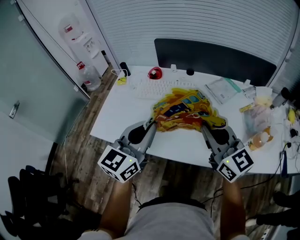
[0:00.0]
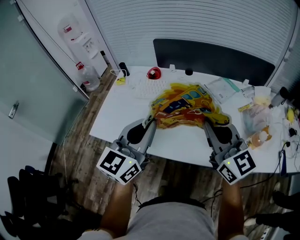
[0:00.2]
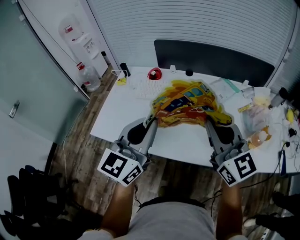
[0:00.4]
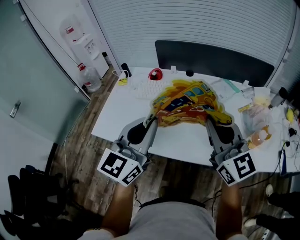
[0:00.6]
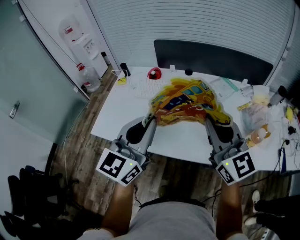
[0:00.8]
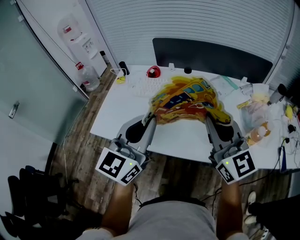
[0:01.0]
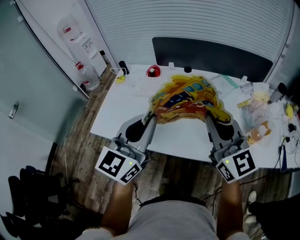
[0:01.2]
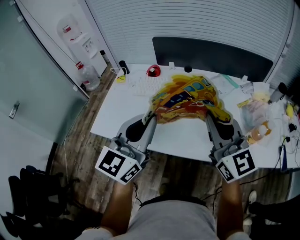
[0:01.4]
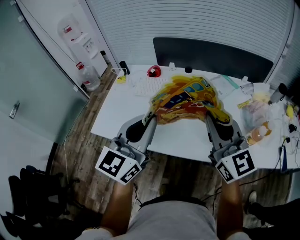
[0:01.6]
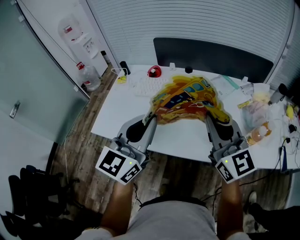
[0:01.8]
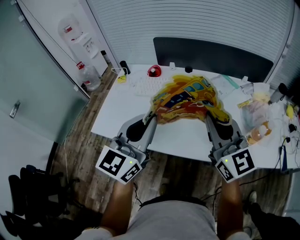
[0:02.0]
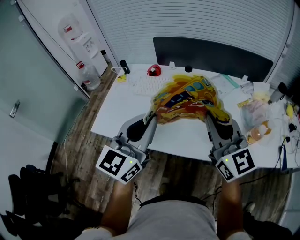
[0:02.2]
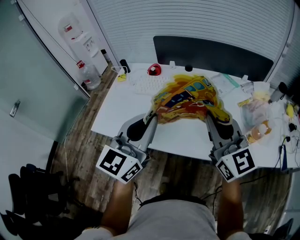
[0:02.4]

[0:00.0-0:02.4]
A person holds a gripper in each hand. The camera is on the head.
0:00.0 to 0:01.2: The left gripper ends up approximately 5 cm from where it was. Meanwhile the right gripper is displaced upward by about 5 cm.
0:01.2 to 0:02.4: Neither gripper changes place.

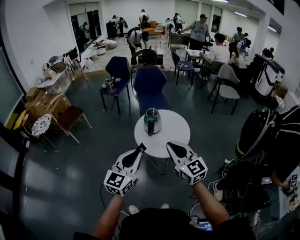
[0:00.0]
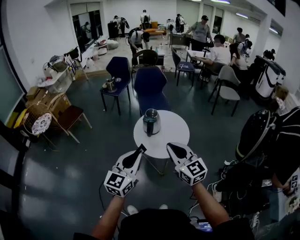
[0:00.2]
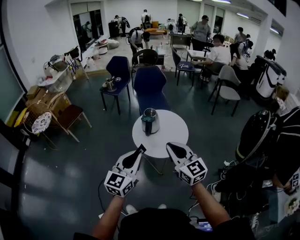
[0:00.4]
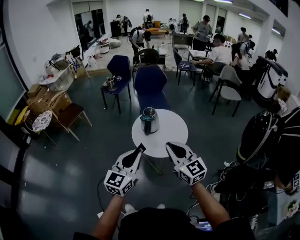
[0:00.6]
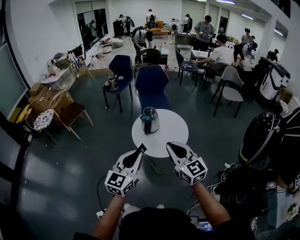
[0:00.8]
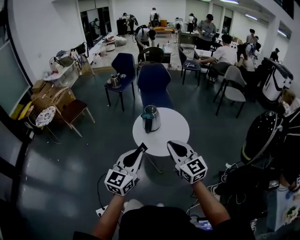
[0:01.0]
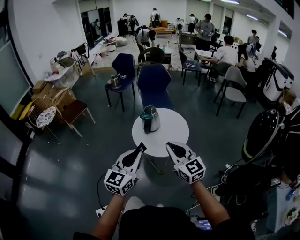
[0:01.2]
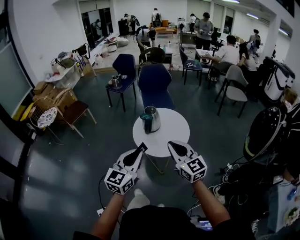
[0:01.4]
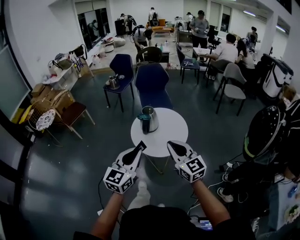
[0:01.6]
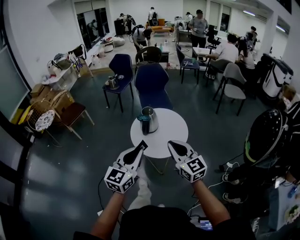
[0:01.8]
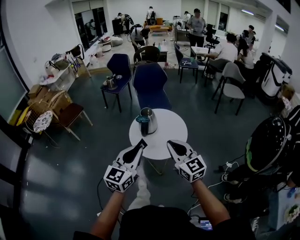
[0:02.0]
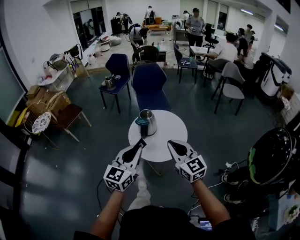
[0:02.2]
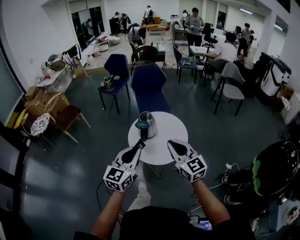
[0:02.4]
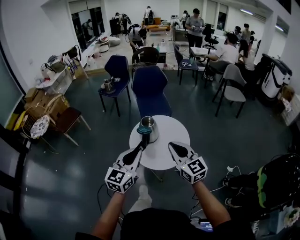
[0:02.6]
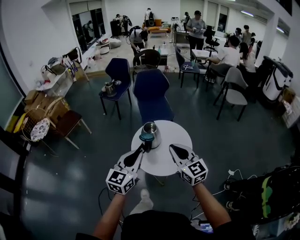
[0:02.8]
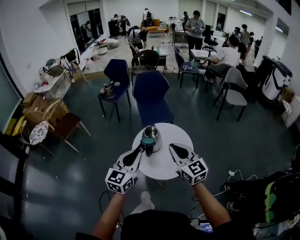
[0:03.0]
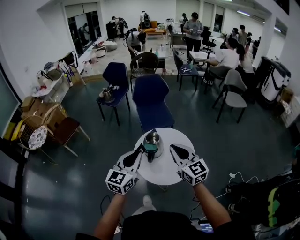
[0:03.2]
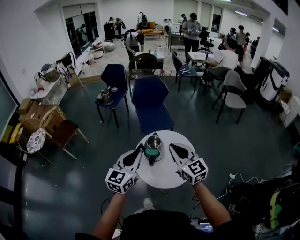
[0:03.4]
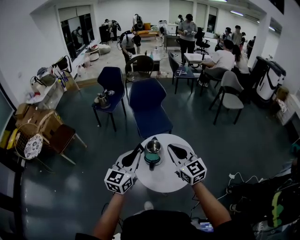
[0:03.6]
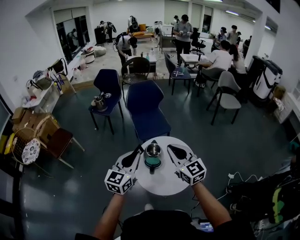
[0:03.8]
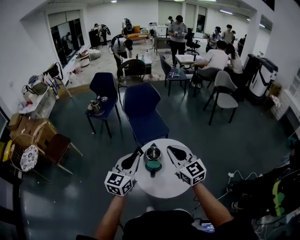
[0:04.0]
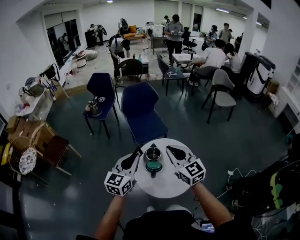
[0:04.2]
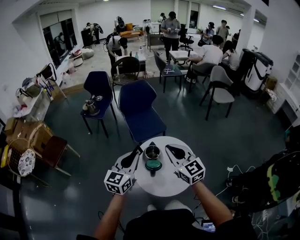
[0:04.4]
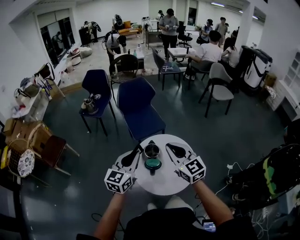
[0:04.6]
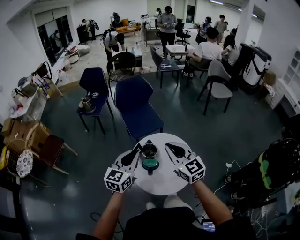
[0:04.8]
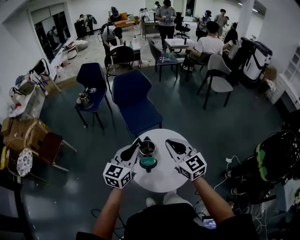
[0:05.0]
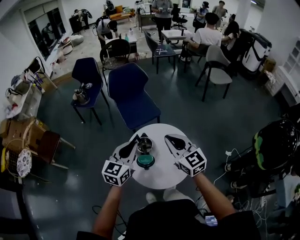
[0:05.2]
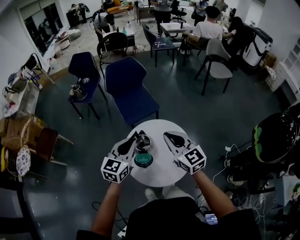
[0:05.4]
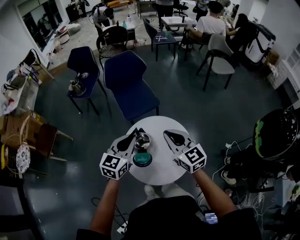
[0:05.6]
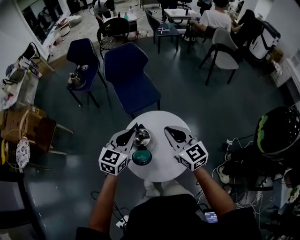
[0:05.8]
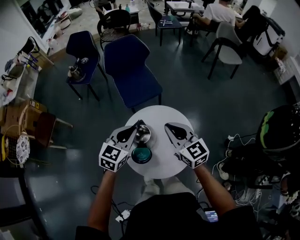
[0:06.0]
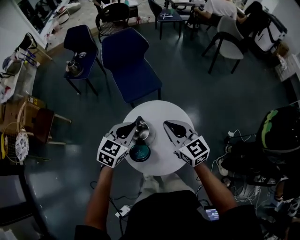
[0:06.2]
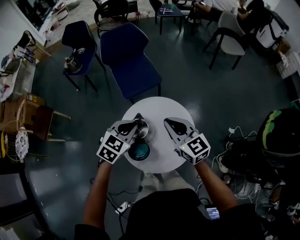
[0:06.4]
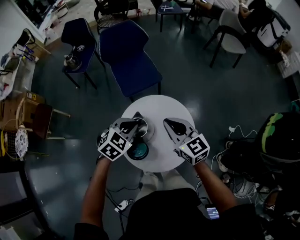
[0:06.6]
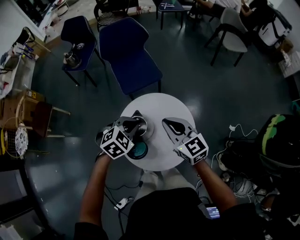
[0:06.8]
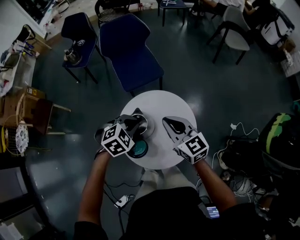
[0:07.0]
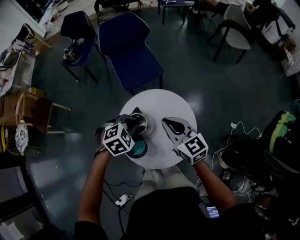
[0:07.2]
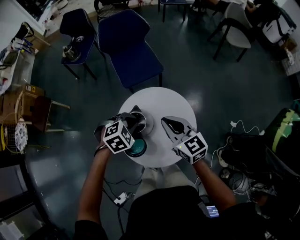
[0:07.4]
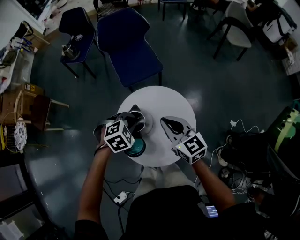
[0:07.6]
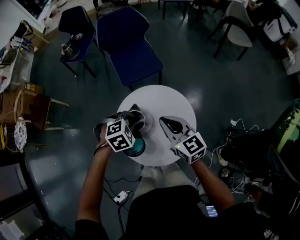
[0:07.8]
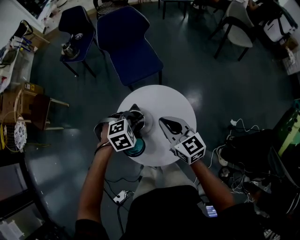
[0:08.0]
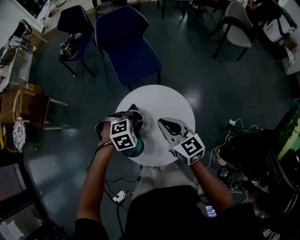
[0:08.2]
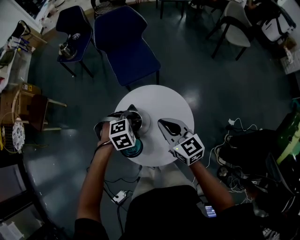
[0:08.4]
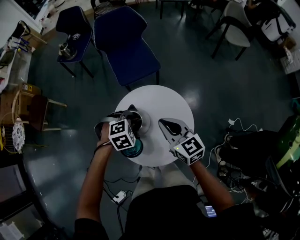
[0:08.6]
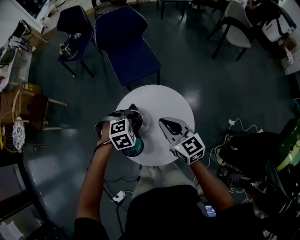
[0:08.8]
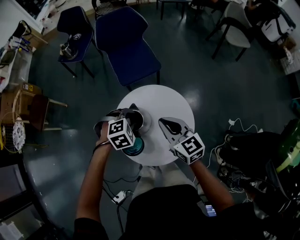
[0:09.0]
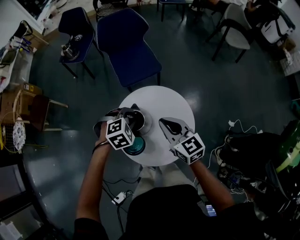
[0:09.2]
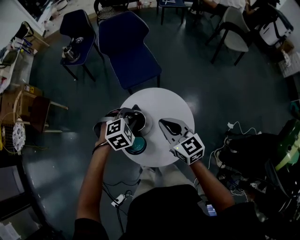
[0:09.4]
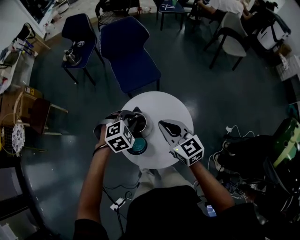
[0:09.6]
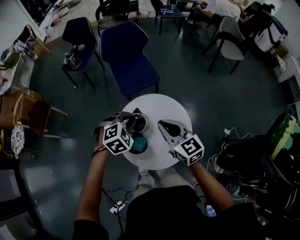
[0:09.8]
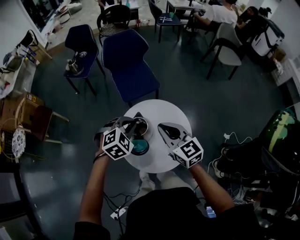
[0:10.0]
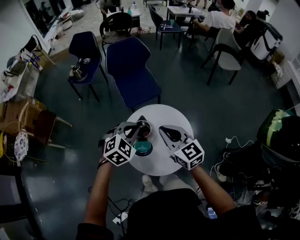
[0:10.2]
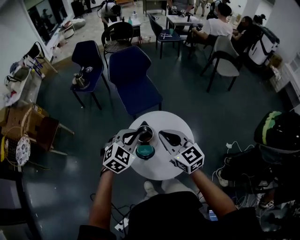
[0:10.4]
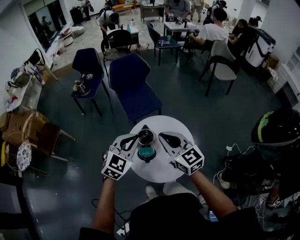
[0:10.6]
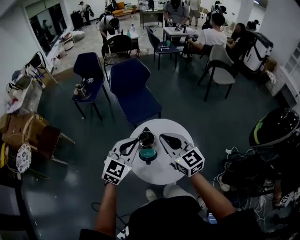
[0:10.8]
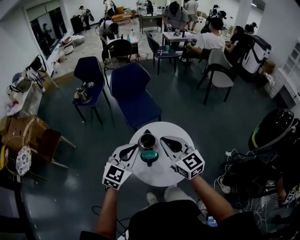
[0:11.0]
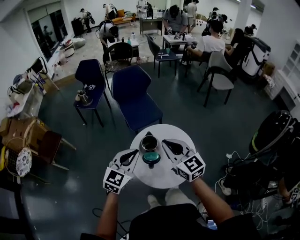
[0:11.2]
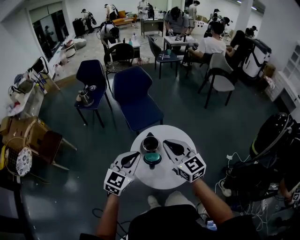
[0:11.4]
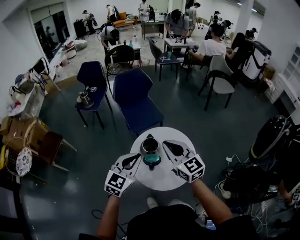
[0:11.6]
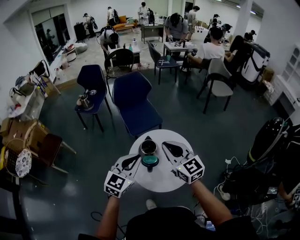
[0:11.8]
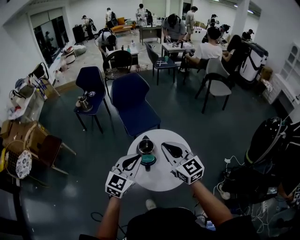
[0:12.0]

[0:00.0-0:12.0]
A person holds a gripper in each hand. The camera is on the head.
0:00.0 to 0:01.6: The grippers both shift to the right by some 10 cm.
0:01.6 to 0:03.0: The two grippers go some 25 cm forward.
0:03.0 to 0:04.4: Both grippers travel together forward and to the left, roughly 20 cm.
0:04.4 to 0:06.0: Both grippers travel together forward, downward and to the right, some 20 cm. The left gripper swivels about 20 degrees.
0:06.0 to 0:07.6: The right gripper moves downward, approximately 10 cm. The left gripper travels downward by roughly 15 cm, and tilts its fingers some 40 degrees downward.
0:07.6 to 0:09.0: There are only small adjustments of the grippers.
0:09.0 to 0:10.4: The right gripper goes approximately 20 cm upward, backward and to the left, while the left gripper is displaced upward and backward by some 20 cm, and angles its fingers upward, by roughly 30 degrees.
0:10.4 to 0:12.0: Both grippers move backward and upward, roughly 15 cm. The left gripper swivels about 30 degrees.

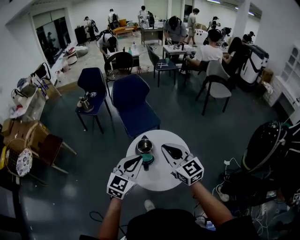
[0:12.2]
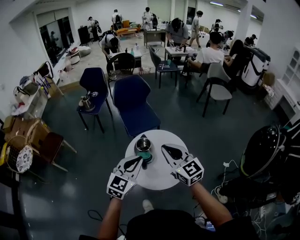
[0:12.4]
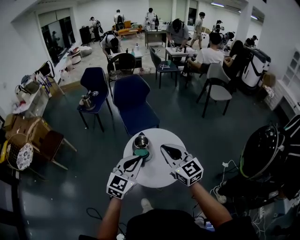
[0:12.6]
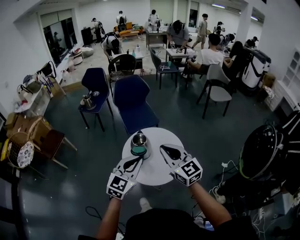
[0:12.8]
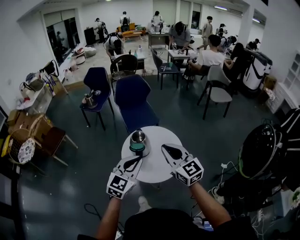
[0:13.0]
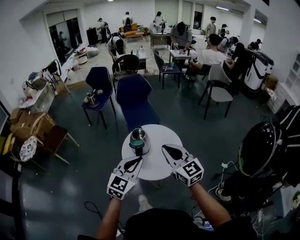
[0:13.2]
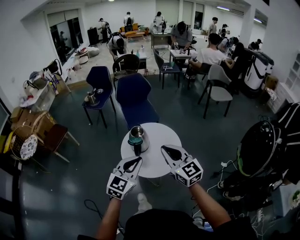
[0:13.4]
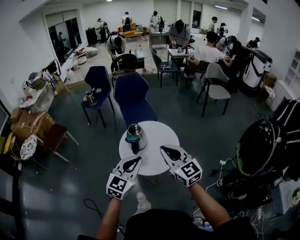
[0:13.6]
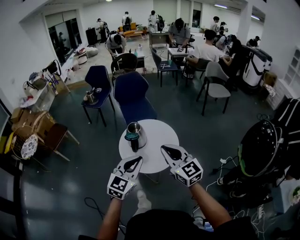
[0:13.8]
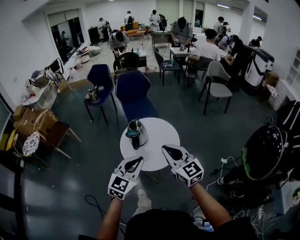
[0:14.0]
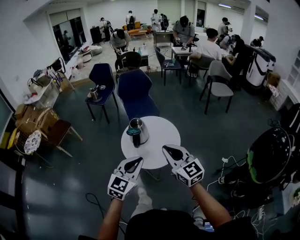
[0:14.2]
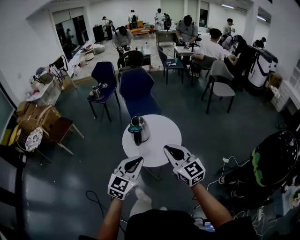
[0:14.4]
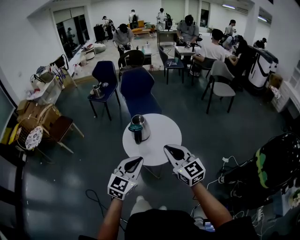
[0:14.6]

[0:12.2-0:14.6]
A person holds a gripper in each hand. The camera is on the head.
0:12.2 to 0:13.4: The two grippers go approximately 20 cm backward and to the right.
0:13.4 to 0:14.6: Both grippers move backward, roughly 10 cm.

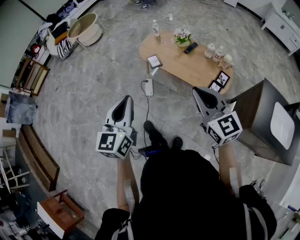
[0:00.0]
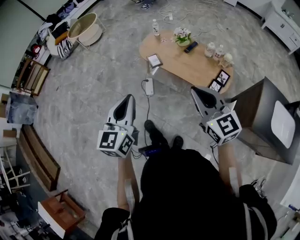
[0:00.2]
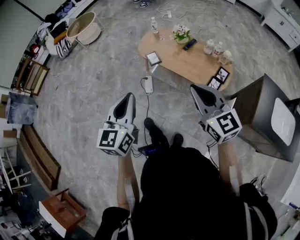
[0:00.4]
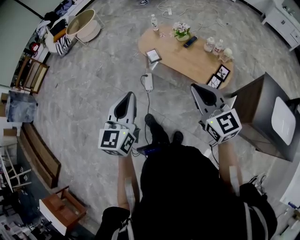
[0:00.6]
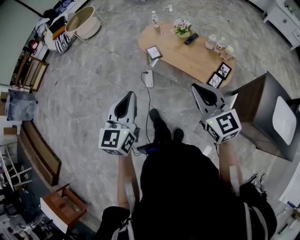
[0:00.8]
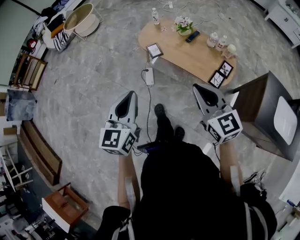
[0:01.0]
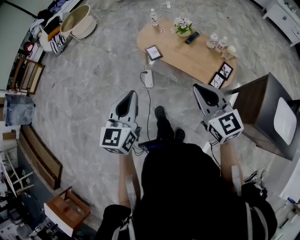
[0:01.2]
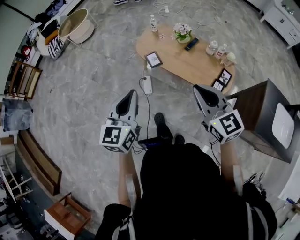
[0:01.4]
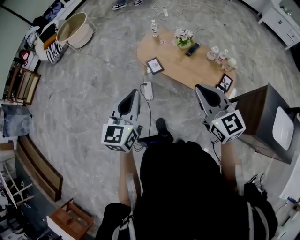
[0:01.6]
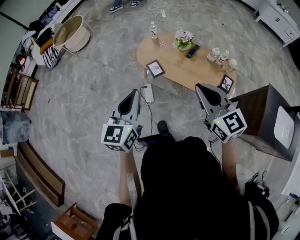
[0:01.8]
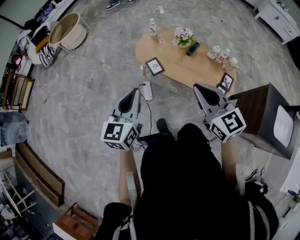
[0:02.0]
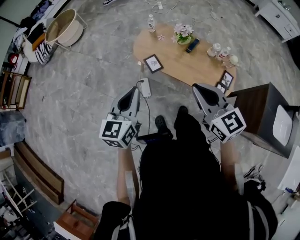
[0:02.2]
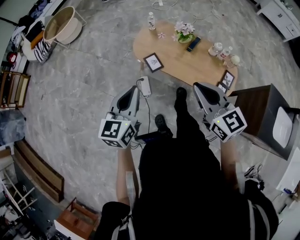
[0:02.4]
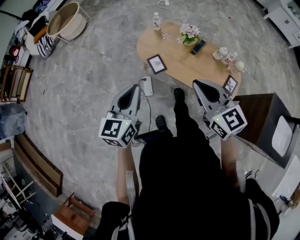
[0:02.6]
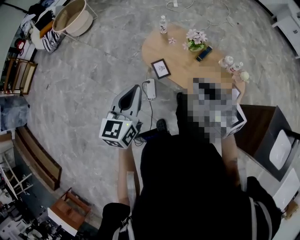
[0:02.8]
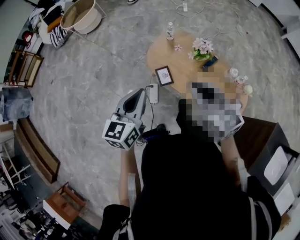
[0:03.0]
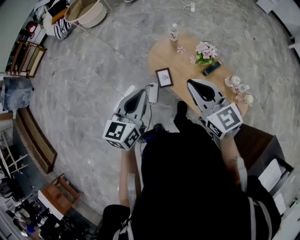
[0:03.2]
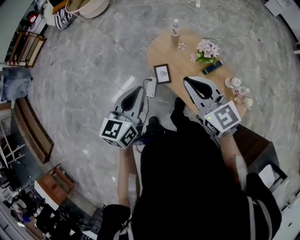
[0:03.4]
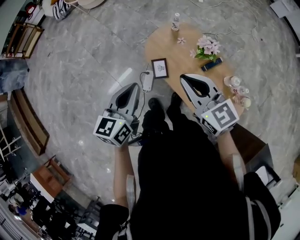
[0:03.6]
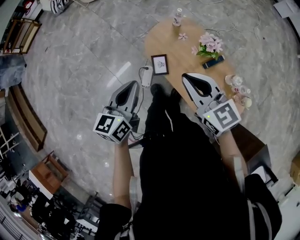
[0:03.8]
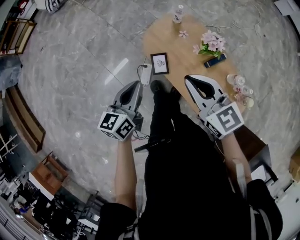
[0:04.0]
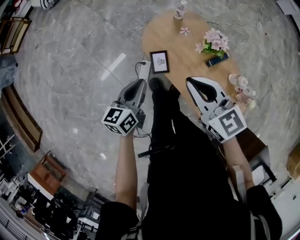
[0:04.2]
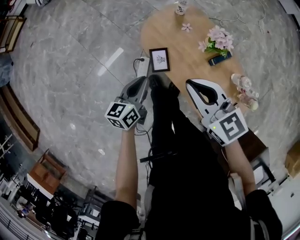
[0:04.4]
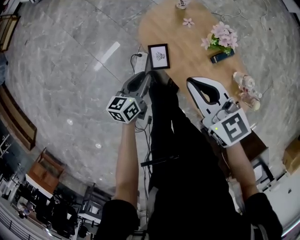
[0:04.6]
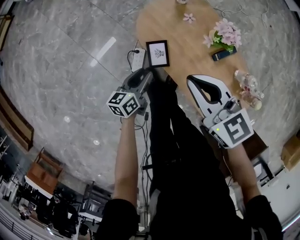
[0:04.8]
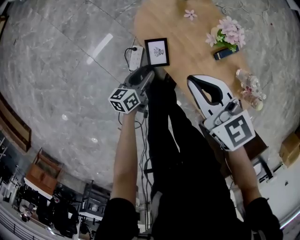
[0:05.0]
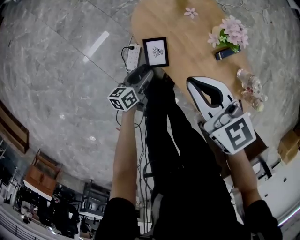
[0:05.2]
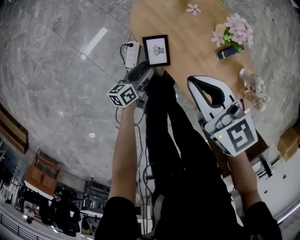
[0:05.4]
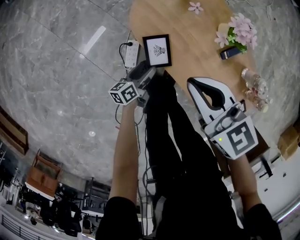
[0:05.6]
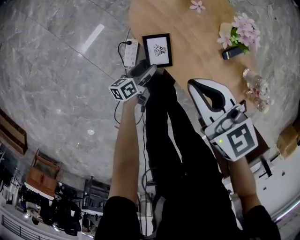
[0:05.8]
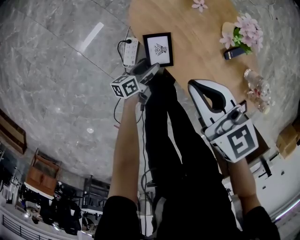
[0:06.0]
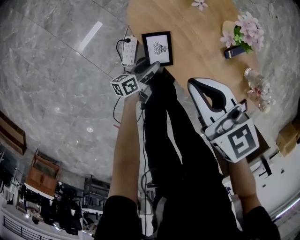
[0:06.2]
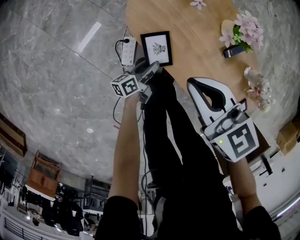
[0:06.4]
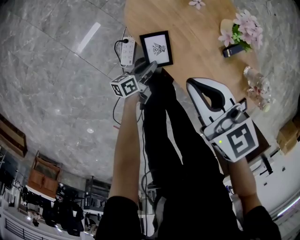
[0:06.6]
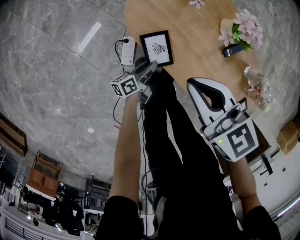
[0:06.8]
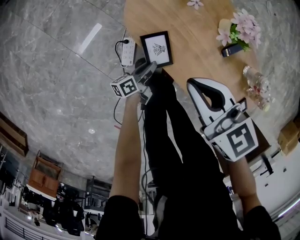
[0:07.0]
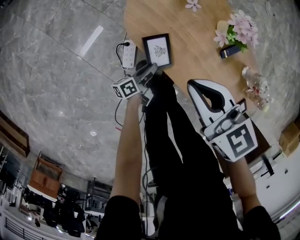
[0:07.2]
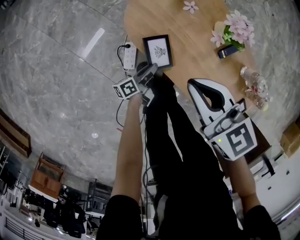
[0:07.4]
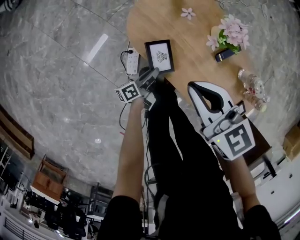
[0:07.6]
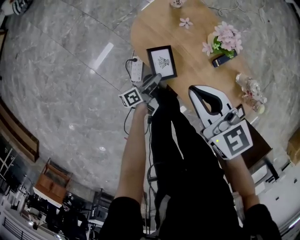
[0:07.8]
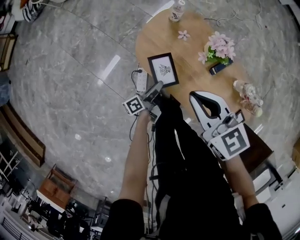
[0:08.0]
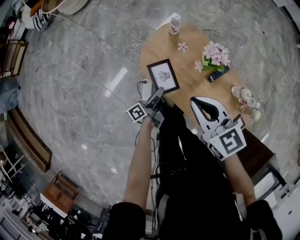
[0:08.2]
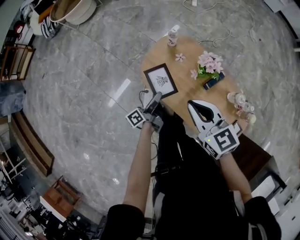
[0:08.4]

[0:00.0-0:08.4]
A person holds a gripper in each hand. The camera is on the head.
0:00.0 to 0:01.4: The grippers both shift forward by roughly 10 cm.
0:01.4 to 0:02.8: The grippers both shift forward by approximately 25 cm.
0:02.8 to 0:04.2: The right gripper heads forward and downward, covering some 20 cm, and swivels approximately 20 degrees. The left gripper moves downward and forward, about 25 cm, and rotates about 30 degrees.
0:04.2 to 0:05.6: The right gripper shifts about 20 cm downward. The left gripper is displaced downward by approximately 40 cm, changes its angle by roughly 30 degrees, and opens up.
0:05.6 to 0:07.0: The left gripper closes up.
0:07.0 to 0:08.4: The right gripper travels upward and to the right by about 20 cm. Meanwhile the left gripper shifts about 30 cm upward, and rotates roughly 20 degrees.
